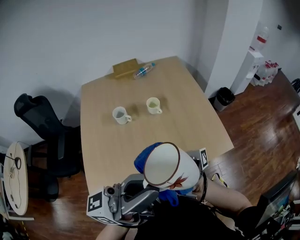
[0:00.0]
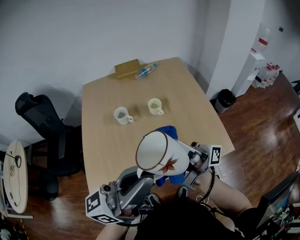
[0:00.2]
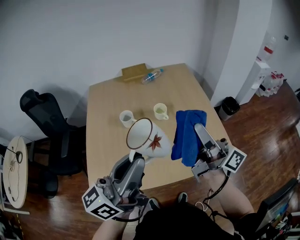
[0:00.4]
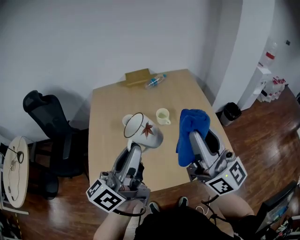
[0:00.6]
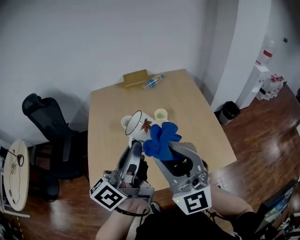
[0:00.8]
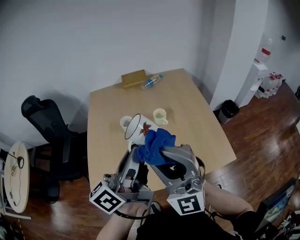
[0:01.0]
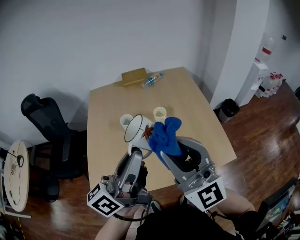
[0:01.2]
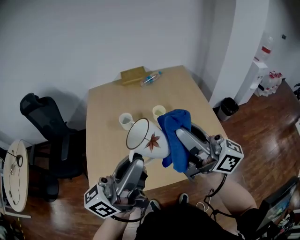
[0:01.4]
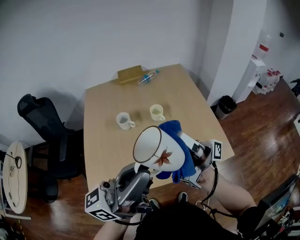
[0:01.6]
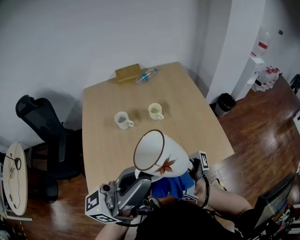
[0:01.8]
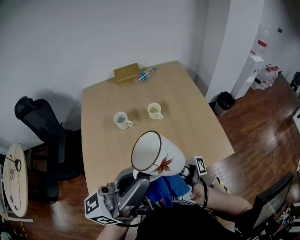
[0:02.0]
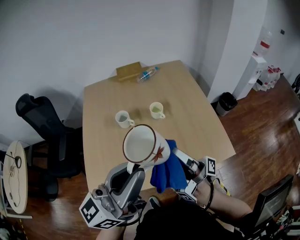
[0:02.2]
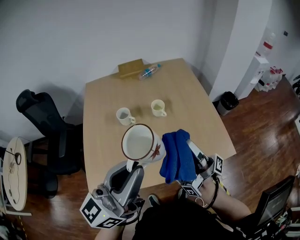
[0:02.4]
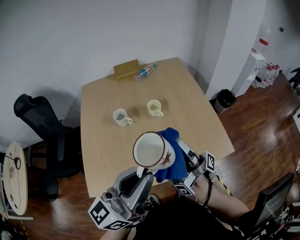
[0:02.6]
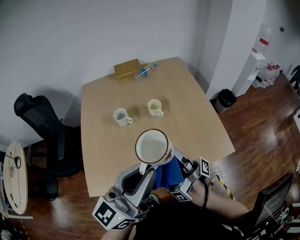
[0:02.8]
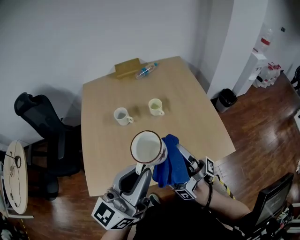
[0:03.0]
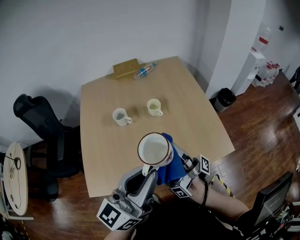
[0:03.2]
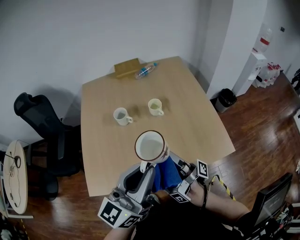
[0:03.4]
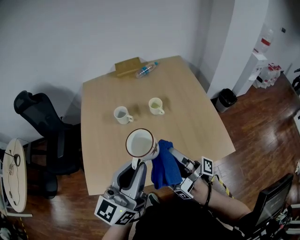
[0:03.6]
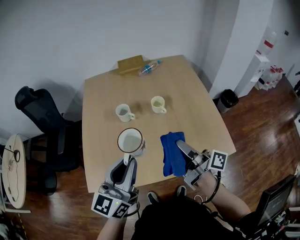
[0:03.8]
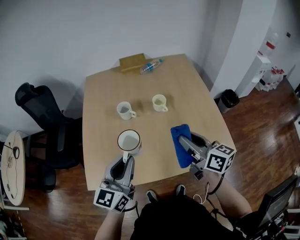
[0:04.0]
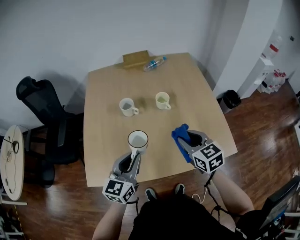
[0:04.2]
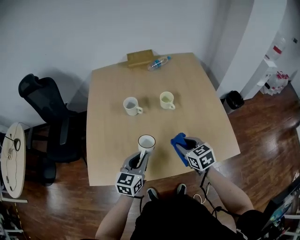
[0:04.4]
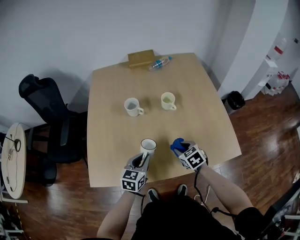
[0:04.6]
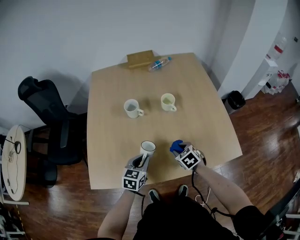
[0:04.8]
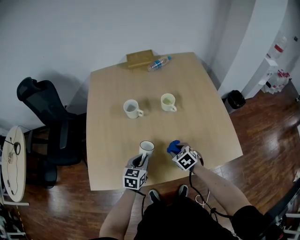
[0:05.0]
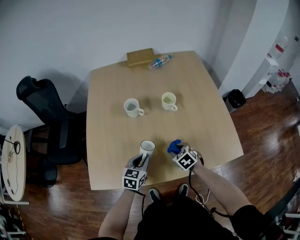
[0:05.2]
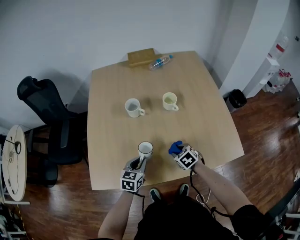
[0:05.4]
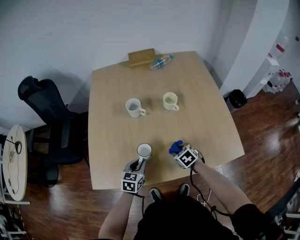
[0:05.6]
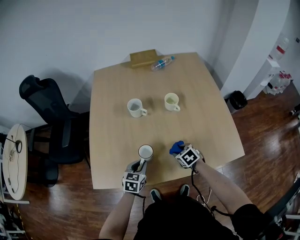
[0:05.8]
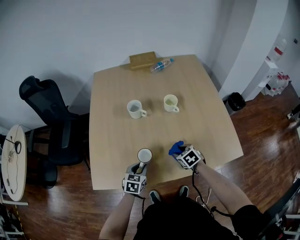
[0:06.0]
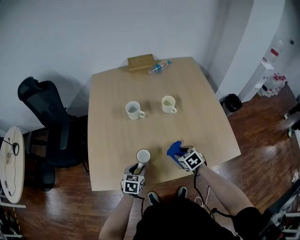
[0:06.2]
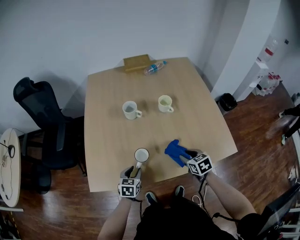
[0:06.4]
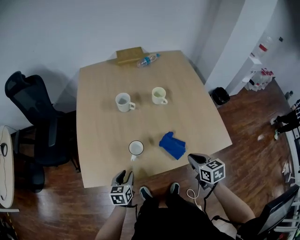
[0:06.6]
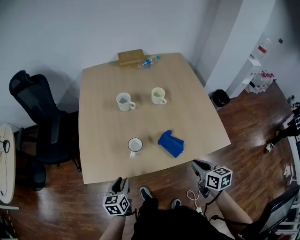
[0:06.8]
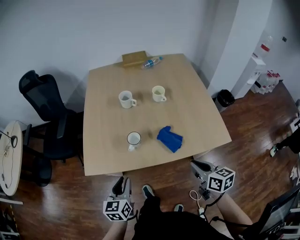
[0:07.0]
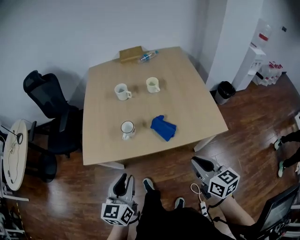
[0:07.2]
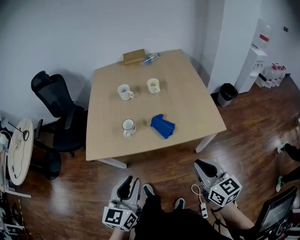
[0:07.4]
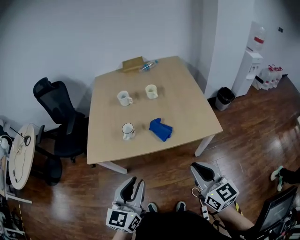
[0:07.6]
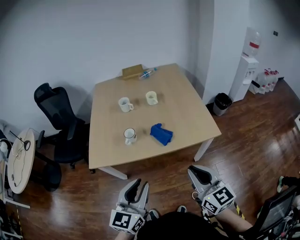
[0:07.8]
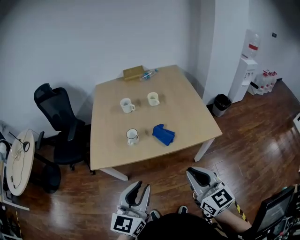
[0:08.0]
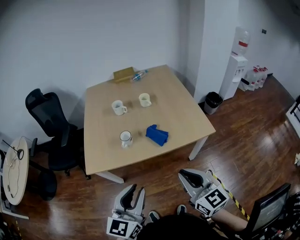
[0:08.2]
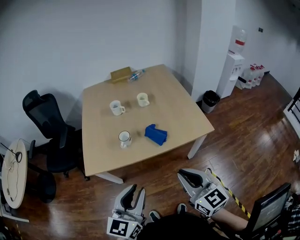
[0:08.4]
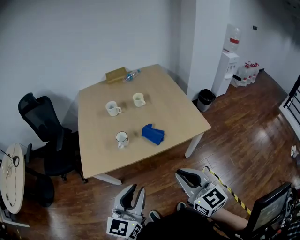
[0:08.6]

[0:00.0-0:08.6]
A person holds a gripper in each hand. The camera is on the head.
0:00.0 to 0:01.4: The right gripper shifts by some 10 cm, and rotates around the line of its fingers by approximately 70 degrees, counterclockwise from behind.
0:01.4 to 0:02.8: The right gripper heads downward, covering some 15 cm, and twists some 70 degrees clockwise, seen from behind. Meanwhile the left gripper changes its angle by roughly 30 degrees.
0:02.8 to 0:04.4: Both grippers move downward, roughly 25 cm. The right gripper points its fingers roughly 70 degrees further downward. Meanwhile the left gripper angles its fingers downward, by approximately 40 degrees.
0:04.4 to 0:05.8: The grippers both shift downward by some 15 cm. The left gripper changes its angle by approximately 20 degrees. The right gripper changes its angle by approximately 20 degrees.
0:05.8 to 0:07.2: Both grippers travel together backward and upward, roughly 35 cm. The right gripper tips its fingers upward by some 40 degrees, and closes up, while the left gripper changes its angle by approximately 30 degrees.
0:07.2 to 0:08.6: The right gripper goes approximately 15 cm backward, upward and to the left, and rotates some 20 degrees. The left gripper travels upward and backward by some 15 cm, and changes its angle by about 20 degrees.

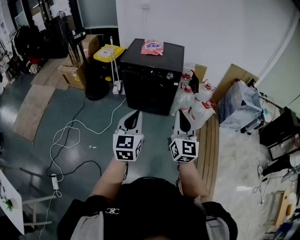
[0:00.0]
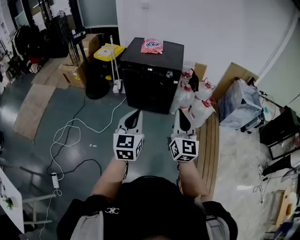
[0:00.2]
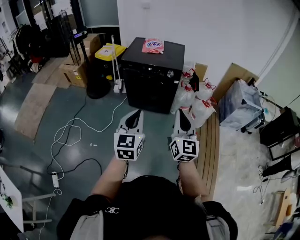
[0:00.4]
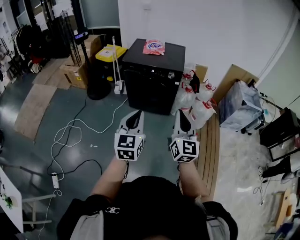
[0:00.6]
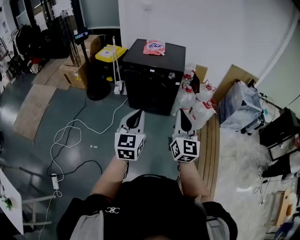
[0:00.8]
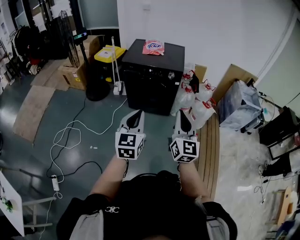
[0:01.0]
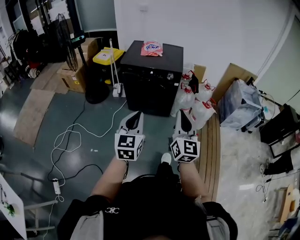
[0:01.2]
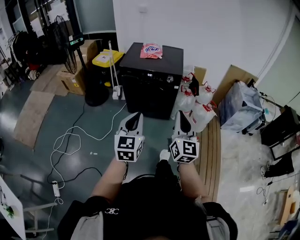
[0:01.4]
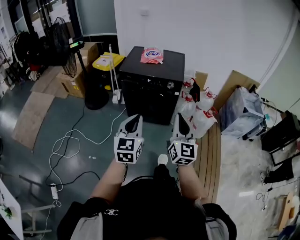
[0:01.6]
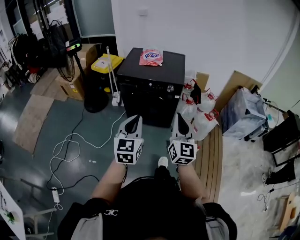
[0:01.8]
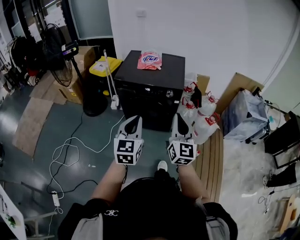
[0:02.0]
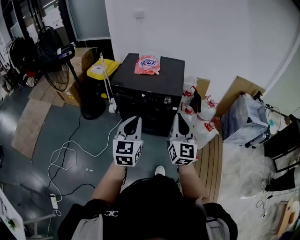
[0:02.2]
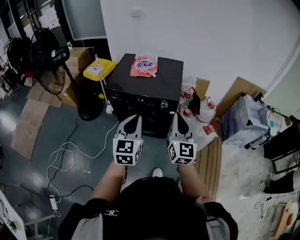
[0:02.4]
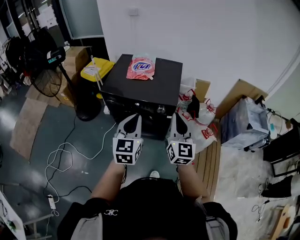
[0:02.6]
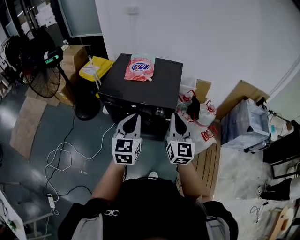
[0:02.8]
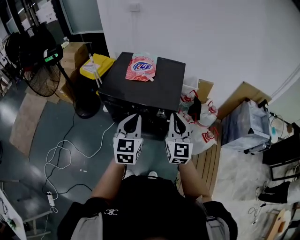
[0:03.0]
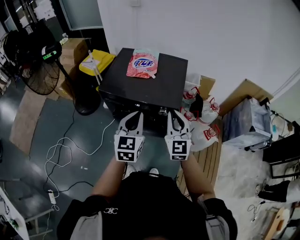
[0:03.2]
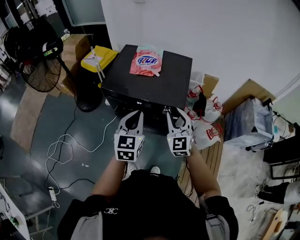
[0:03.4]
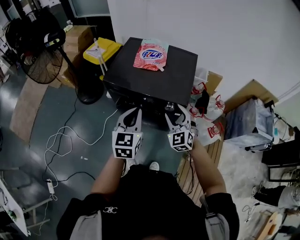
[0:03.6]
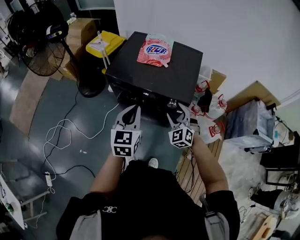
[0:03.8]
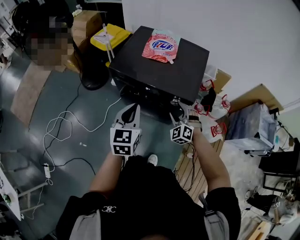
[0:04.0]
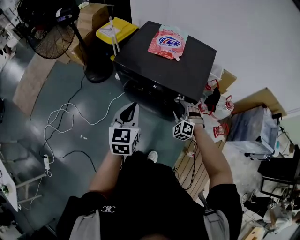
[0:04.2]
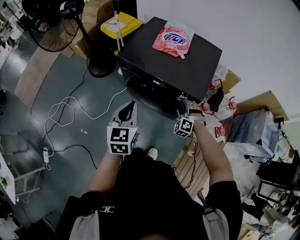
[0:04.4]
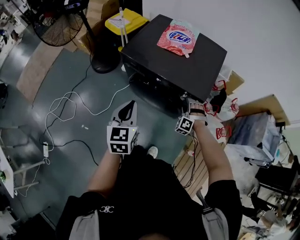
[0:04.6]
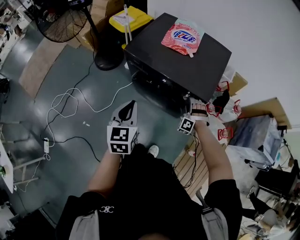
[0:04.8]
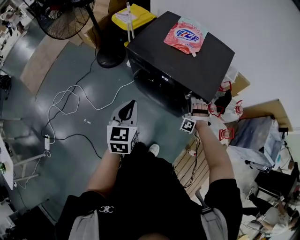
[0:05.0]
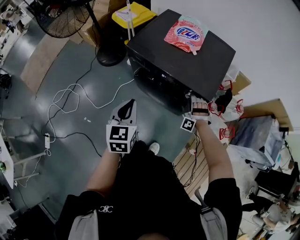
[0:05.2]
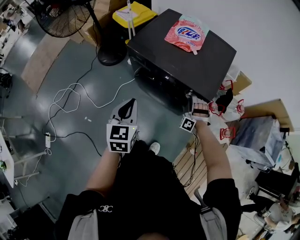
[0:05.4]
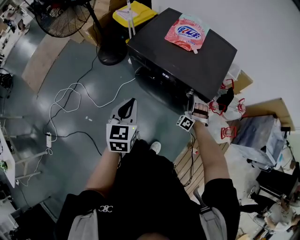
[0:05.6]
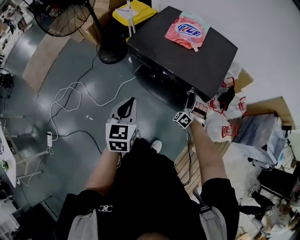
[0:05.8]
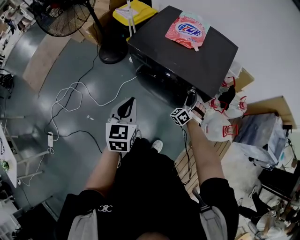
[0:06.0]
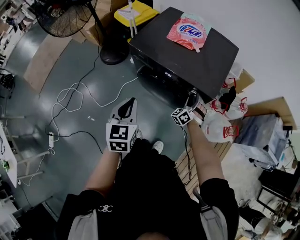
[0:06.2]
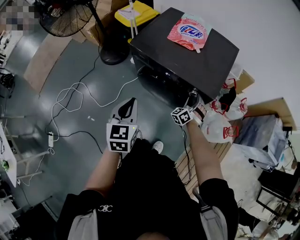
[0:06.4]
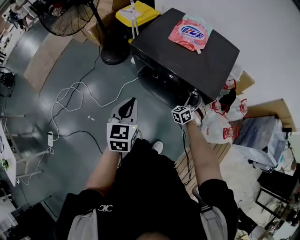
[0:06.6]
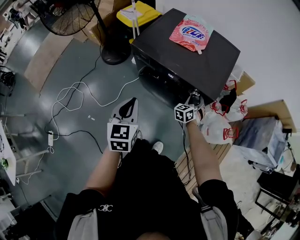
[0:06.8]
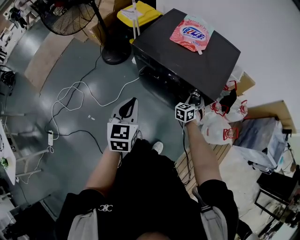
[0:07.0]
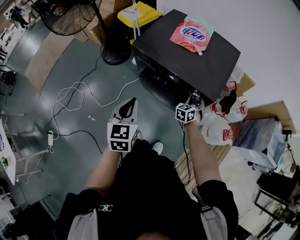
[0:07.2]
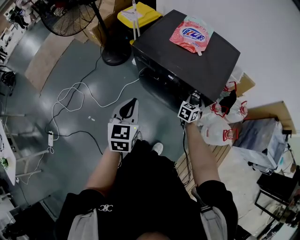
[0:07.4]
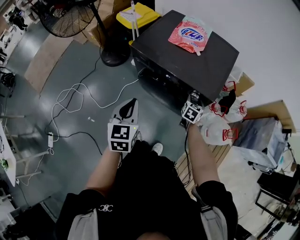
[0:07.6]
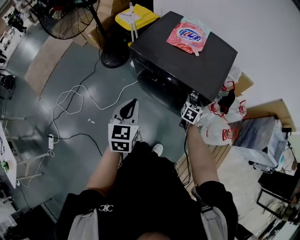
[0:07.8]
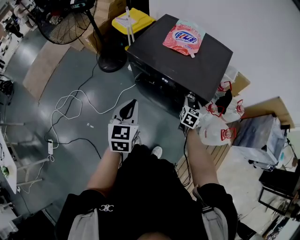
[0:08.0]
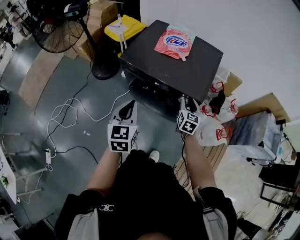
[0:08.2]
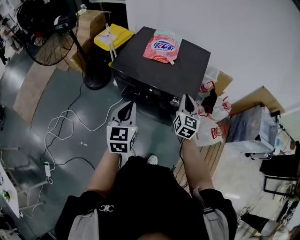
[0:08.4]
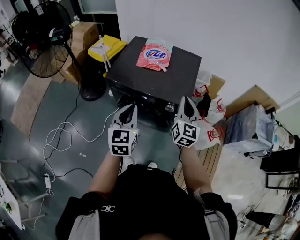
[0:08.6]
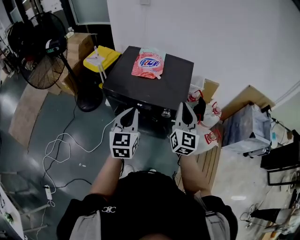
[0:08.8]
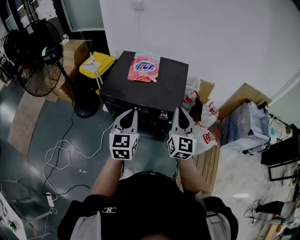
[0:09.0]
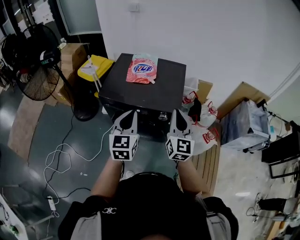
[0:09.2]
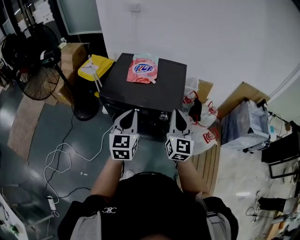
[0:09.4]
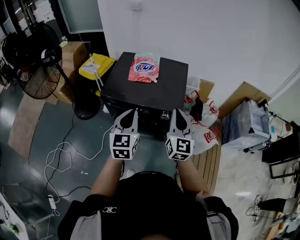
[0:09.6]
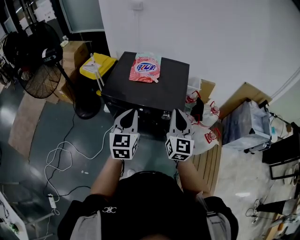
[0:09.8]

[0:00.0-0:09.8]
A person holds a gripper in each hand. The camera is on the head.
0:00.0 to 0:01.4: The grippers move only a little.
0:01.4 to 0:02.8: The two grippers go some 40 cm forward.
0:02.8 to 0:04.2: The left gripper moves to the left and downward, some 10 cm, while the right gripper moves downward and forward, some 30 cm, rolls counterclockwise, seen from behind, by roughly 70 degrees, and opens.
0:04.2 to 0:05.6: The left gripper changes place by some 5 cm. Meanwhile the right gripper heads downward and forward, covering roughly 10 cm, and changes its angle by some 30 degrees.
0:05.6 to 0:07.0: The right gripper rolls clockwise, seen from behind, by approximately 60 degrees.
0:07.0 to 0:08.4: The left gripper travels upward and to the right by approximately 5 cm. Meanwhile the right gripper heads upward, covering some 20 cm, turns by roughly 50 degrees, and closes.
0:08.4 to 0:09.8: The right gripper is displaced upward and backward by roughly 15 cm. Meanwhile the left gripper heads upward, covering about 5 cm.

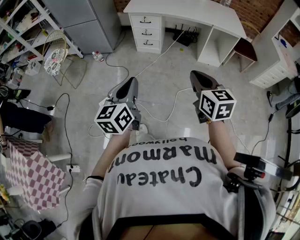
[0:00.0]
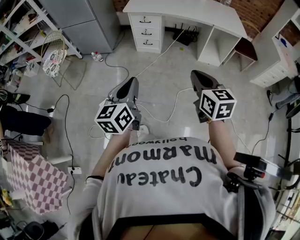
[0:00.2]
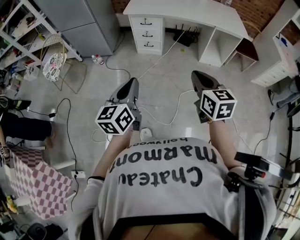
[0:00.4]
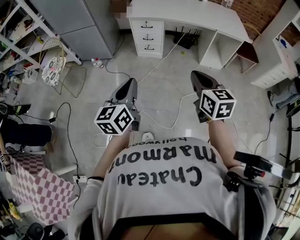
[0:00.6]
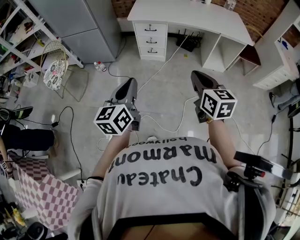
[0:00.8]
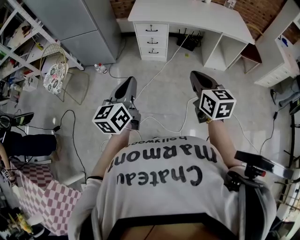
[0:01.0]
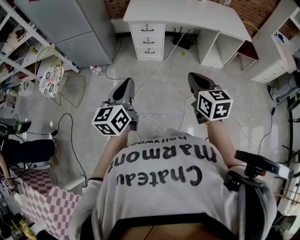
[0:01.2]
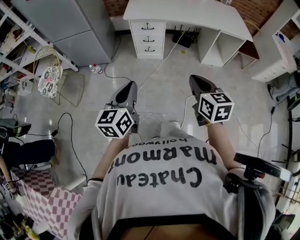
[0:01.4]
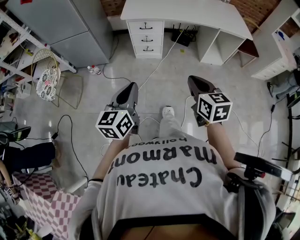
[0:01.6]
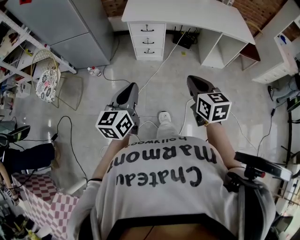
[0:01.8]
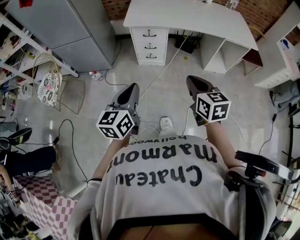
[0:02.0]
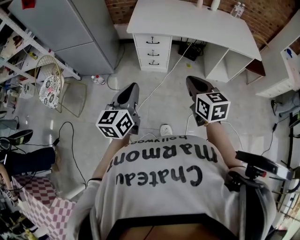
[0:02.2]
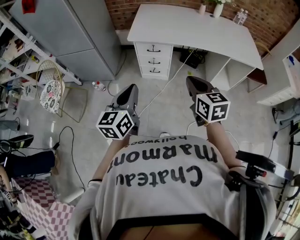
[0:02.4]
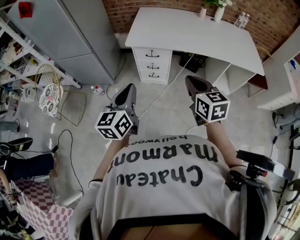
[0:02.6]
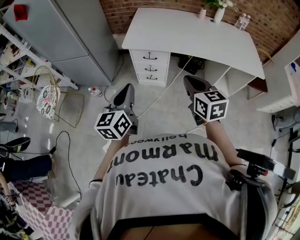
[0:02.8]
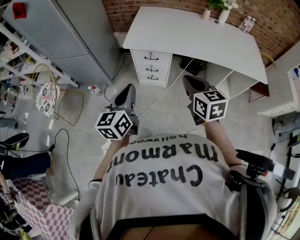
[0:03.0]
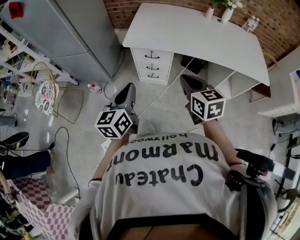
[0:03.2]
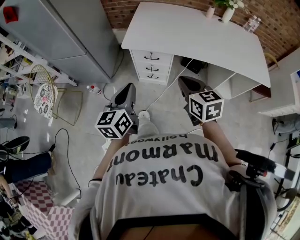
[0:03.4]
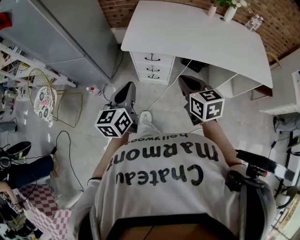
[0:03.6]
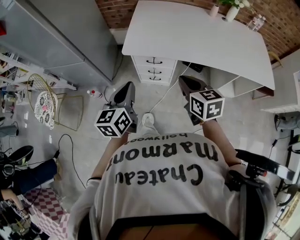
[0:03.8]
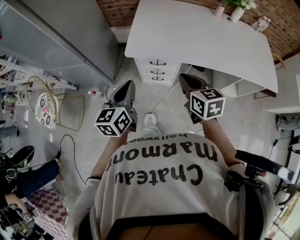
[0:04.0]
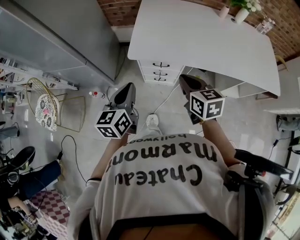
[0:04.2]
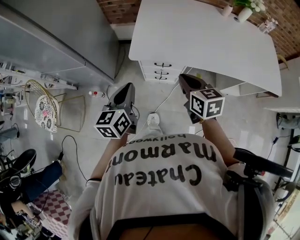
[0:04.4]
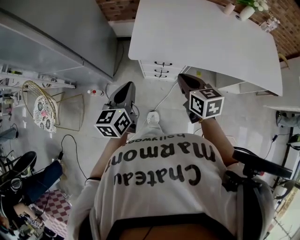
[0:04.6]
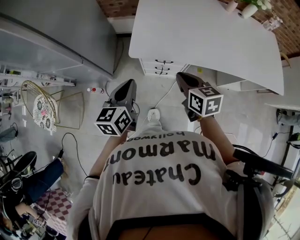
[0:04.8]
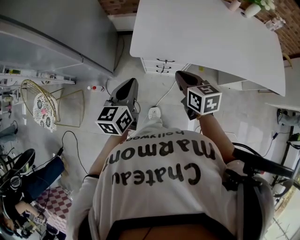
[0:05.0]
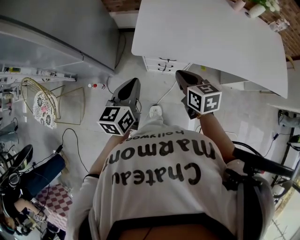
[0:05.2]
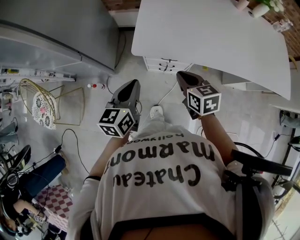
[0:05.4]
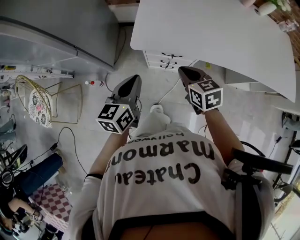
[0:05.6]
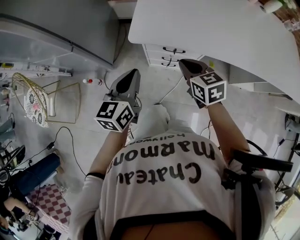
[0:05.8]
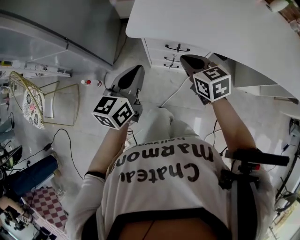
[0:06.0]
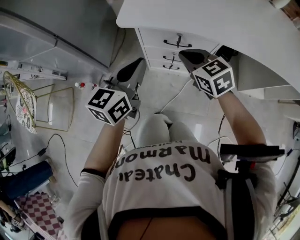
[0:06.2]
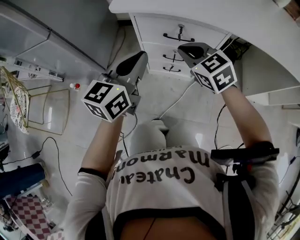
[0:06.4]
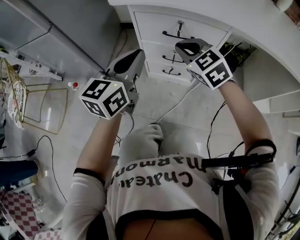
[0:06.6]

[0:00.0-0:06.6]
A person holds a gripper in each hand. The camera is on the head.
0:00.0 to 0:01.6: The grippers both shift forward and to the left by approximately 25 cm.
0:01.6 to 0:03.2: Both grippers travel together forward, approximately 30 cm.
0:03.2 to 0:05.0: The right gripper shifts about 30 cm forward, downward and to the left; the left gripper goes roughly 25 cm forward.
0:05.0 to 0:06.6: The grippers both shift downward by roughly 30 cm. The right gripper rolls counterclockwise, seen from behind, by approximately 50 degrees.
